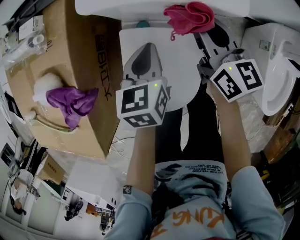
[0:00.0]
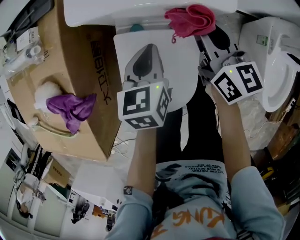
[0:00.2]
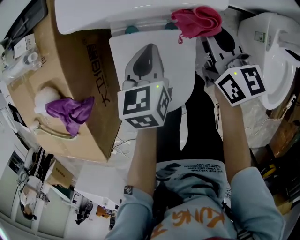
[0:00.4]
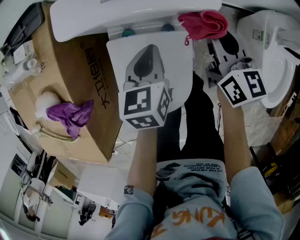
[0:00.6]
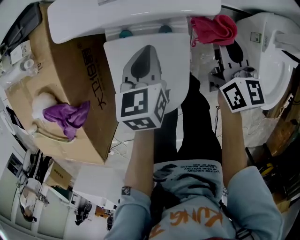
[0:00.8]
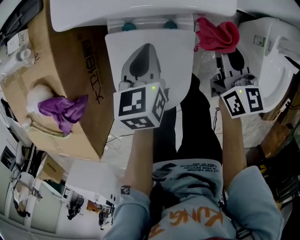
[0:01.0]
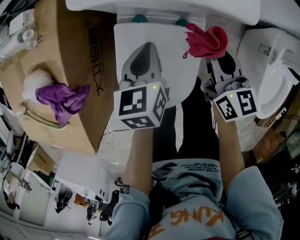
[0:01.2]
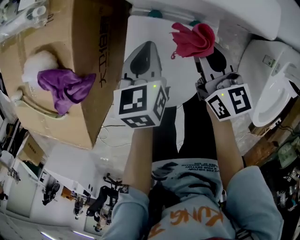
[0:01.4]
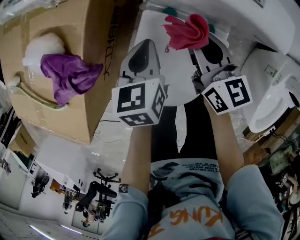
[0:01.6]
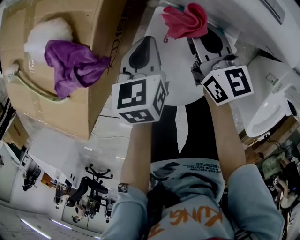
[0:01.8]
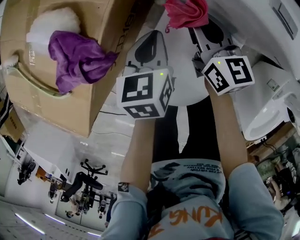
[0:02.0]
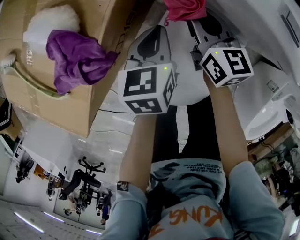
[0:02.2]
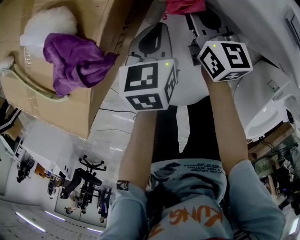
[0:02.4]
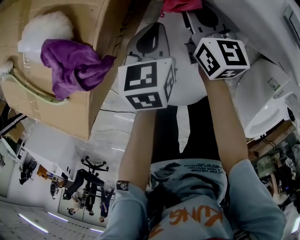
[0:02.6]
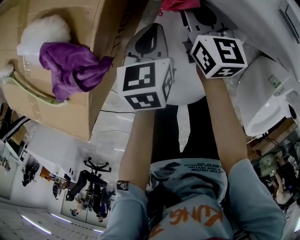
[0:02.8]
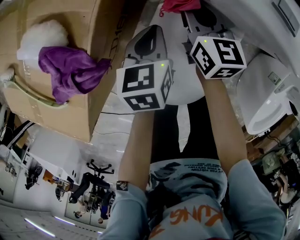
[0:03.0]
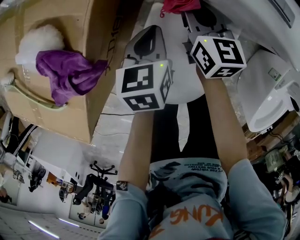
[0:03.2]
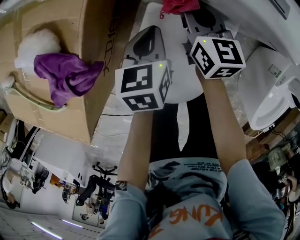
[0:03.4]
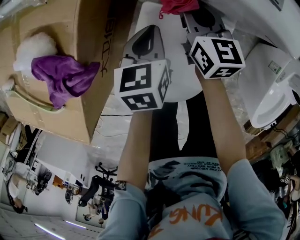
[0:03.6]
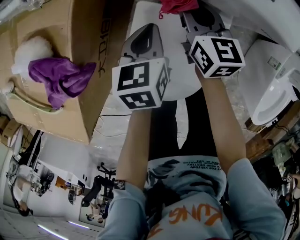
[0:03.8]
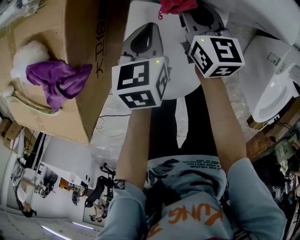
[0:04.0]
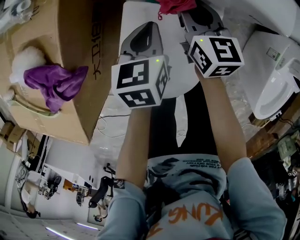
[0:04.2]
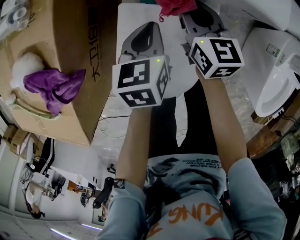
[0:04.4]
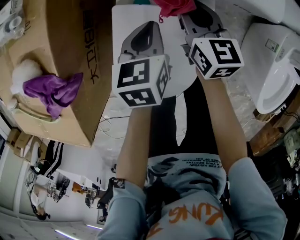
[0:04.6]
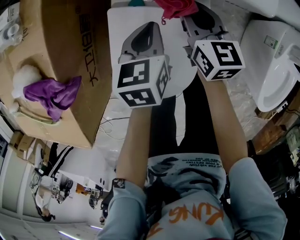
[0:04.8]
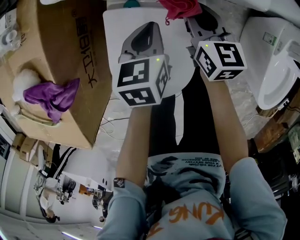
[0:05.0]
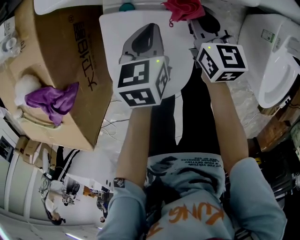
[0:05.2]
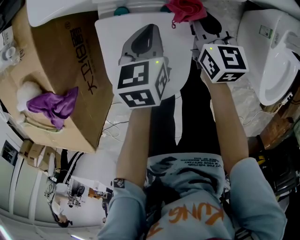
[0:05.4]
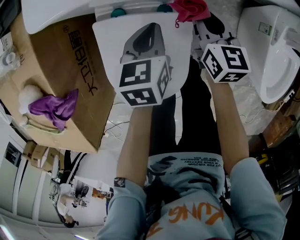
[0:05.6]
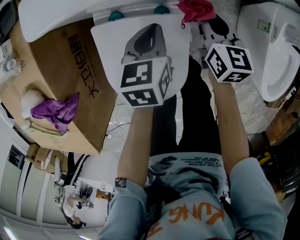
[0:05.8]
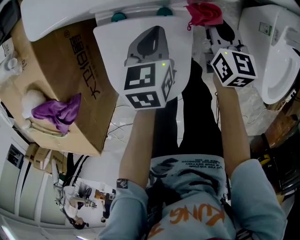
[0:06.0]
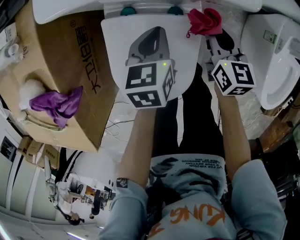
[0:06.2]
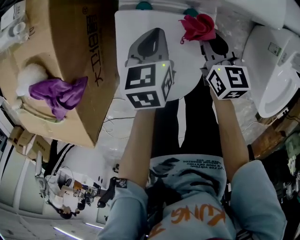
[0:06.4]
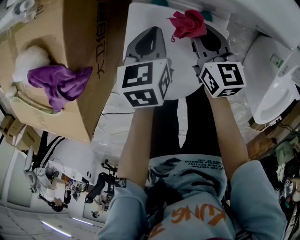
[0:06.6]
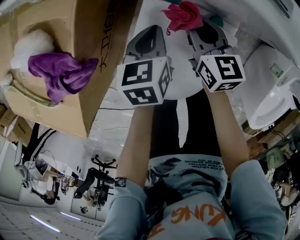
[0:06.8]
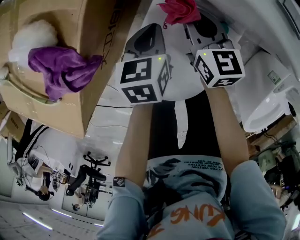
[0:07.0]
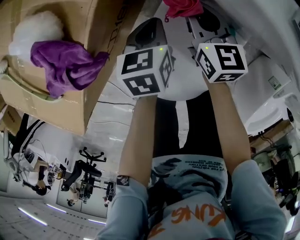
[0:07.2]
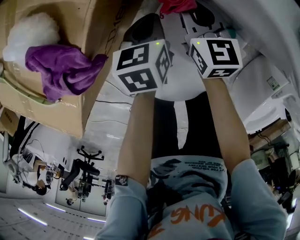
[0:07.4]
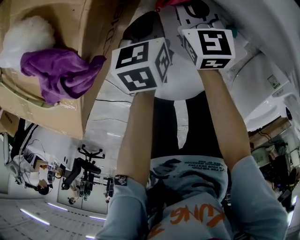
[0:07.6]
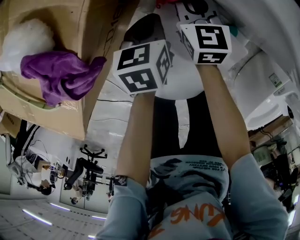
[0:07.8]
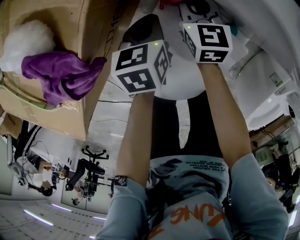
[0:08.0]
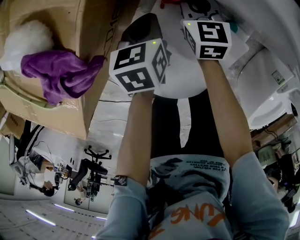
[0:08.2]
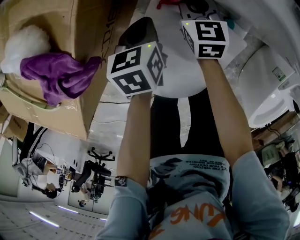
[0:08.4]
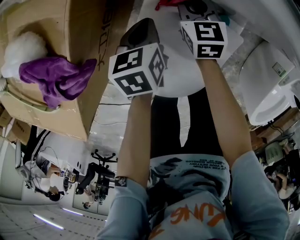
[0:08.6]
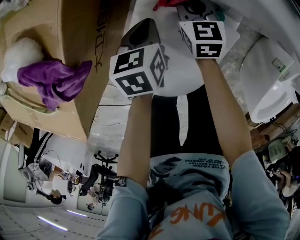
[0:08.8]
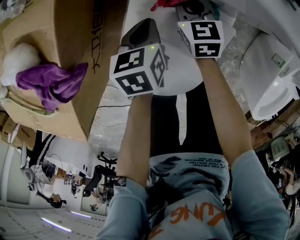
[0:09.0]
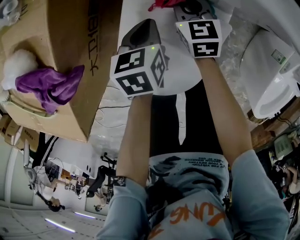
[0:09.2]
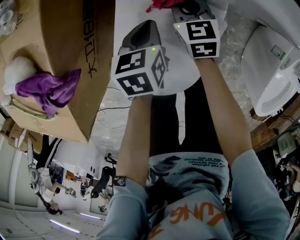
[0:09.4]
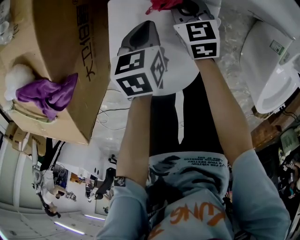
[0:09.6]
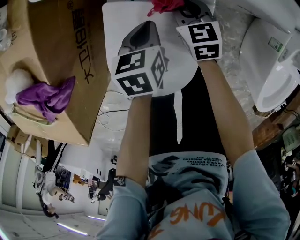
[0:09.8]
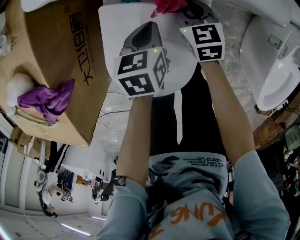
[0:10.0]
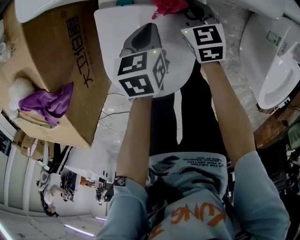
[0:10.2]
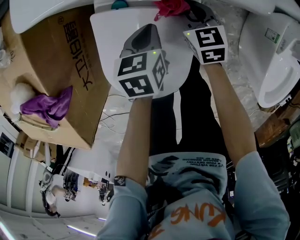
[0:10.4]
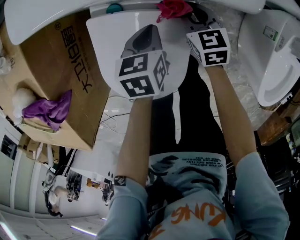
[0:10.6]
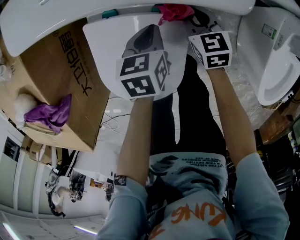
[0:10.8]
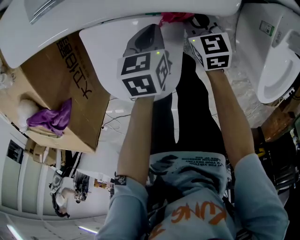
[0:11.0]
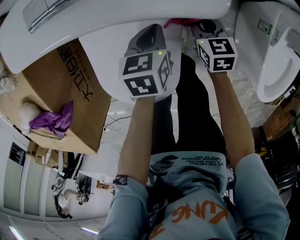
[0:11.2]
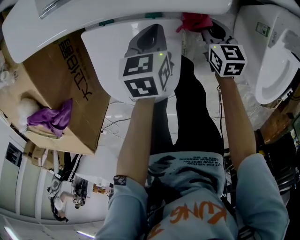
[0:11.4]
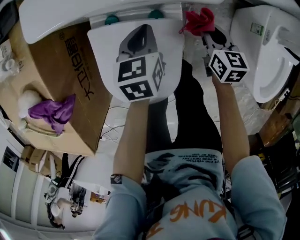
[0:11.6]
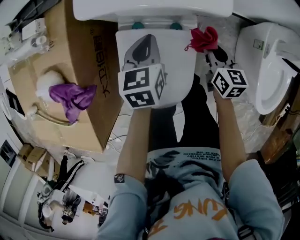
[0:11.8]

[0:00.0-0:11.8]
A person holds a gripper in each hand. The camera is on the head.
0.0 to 1.4 s: The right gripper moves backward, some 5 cm, and reaches about 15 cm to the right, then returns. The left gripper ends up about 5 cm from where it was.
1.4 to 3.0 s: The left gripper travels to the left by about 10 cm. Meanwhile the right gripper shifts some 20 cm forward, to the left and downward.
3.0 to 4.4 s: Both grippers move to the right, some 10 cm.
4.4 to 6.0 s: The right gripper shifts approximately 20 cm to the right. Meanwhile the left gripper shifts roughly 10 cm to the right.
6.0 to 7.4 s: The left gripper ends up about 25 cm from where it was, and changes its angle by about 30 degrees; the right gripper ends up roughly 35 cm from where it was, and turns by roughly 40 degrees.
7.4 to 8.8 s: The left gripper goes some 5 cm to the right. Meanwhile the right gripper is displaced to the right and downward by approximately 10 cm.
8.8 to 10.4 s: The two grippers go about 15 cm to the right.
10.4 to 11.8 s: The right gripper is displaced upward, to the right and backward by about 15 cm, and turns by approximately 30 degrees; the left gripper is displaced upward by about 15 cm.

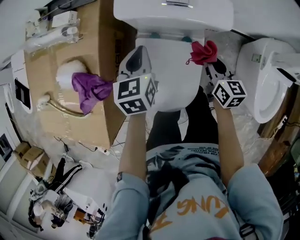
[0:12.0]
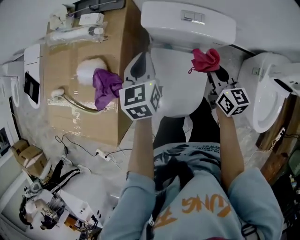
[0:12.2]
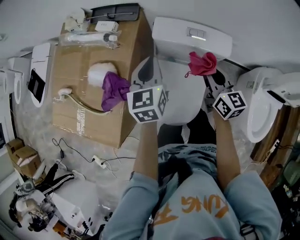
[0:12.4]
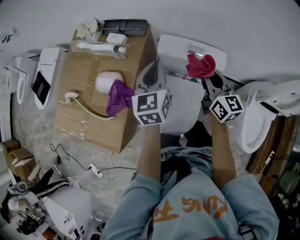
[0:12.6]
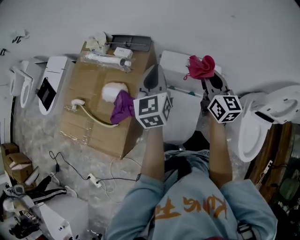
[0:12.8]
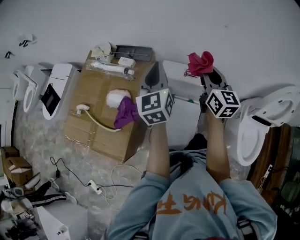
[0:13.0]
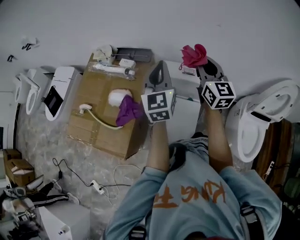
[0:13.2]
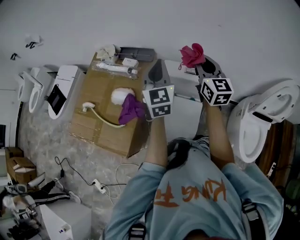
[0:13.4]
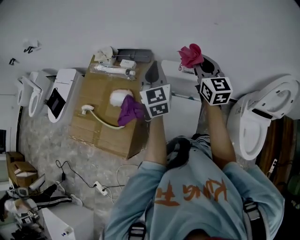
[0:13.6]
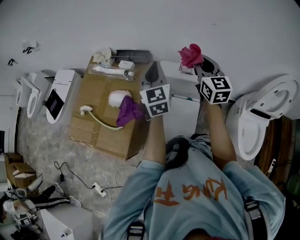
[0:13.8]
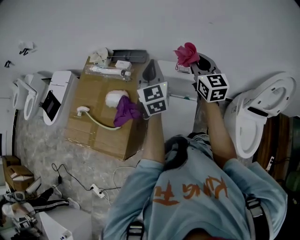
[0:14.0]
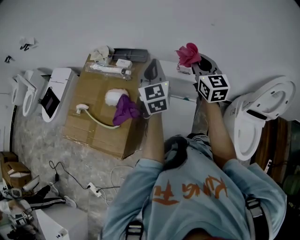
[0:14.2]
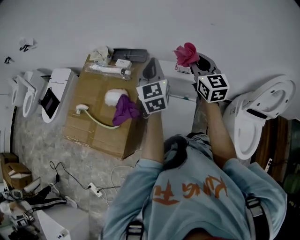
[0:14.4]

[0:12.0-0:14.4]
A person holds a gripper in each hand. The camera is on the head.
12.0 to 13.2 s: Both grippers move upward, roughly 40 cm. The right gripper tilts its fingers roughly 30 degrees upward, while the left gripper tips its fingers upward by about 40 degrees.
13.2 to 14.4 s: There are only small adjustments of the grippers.

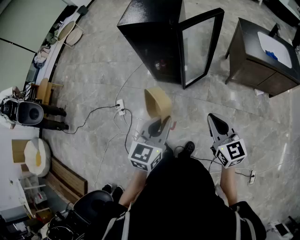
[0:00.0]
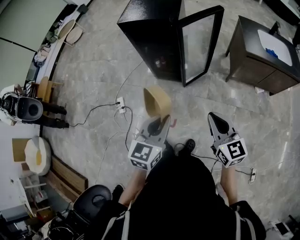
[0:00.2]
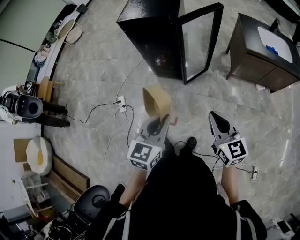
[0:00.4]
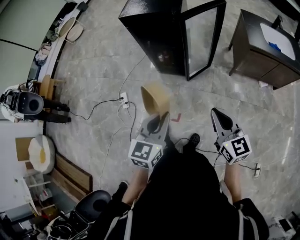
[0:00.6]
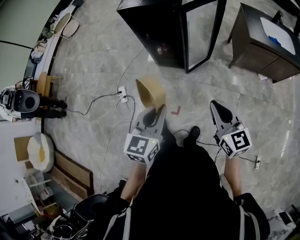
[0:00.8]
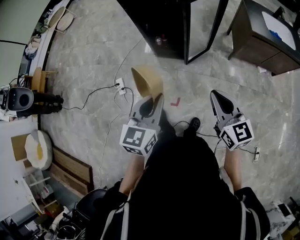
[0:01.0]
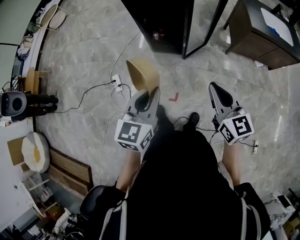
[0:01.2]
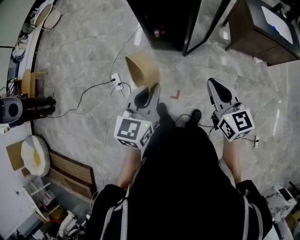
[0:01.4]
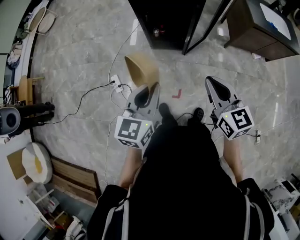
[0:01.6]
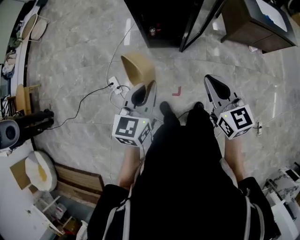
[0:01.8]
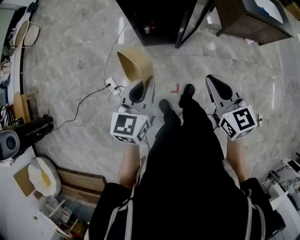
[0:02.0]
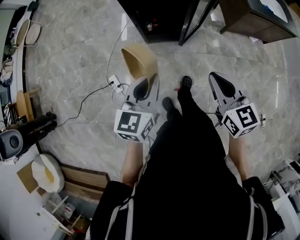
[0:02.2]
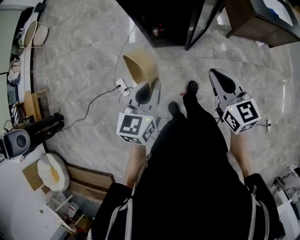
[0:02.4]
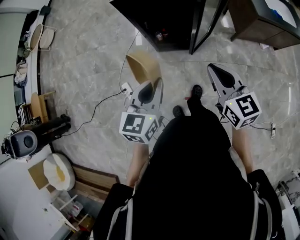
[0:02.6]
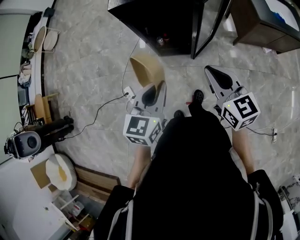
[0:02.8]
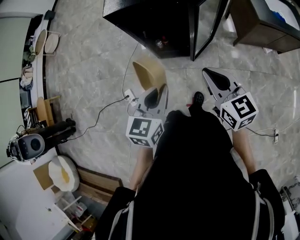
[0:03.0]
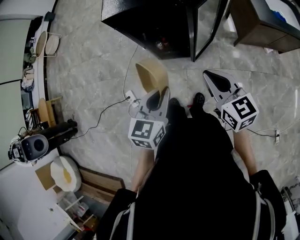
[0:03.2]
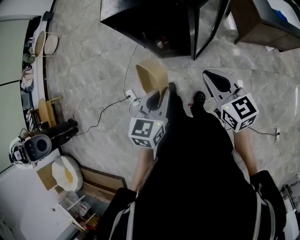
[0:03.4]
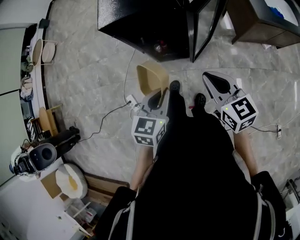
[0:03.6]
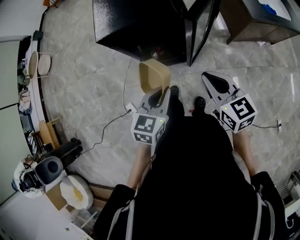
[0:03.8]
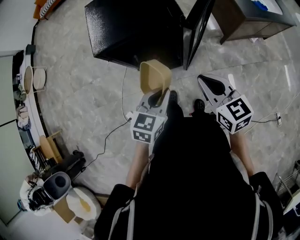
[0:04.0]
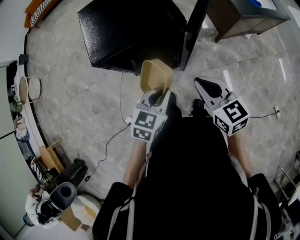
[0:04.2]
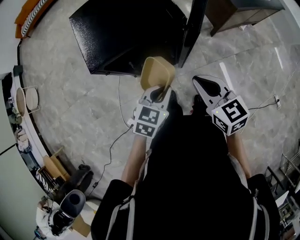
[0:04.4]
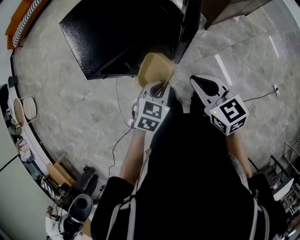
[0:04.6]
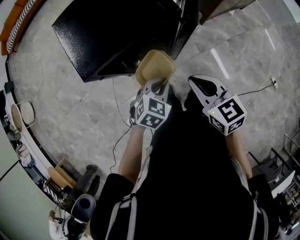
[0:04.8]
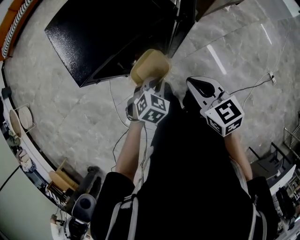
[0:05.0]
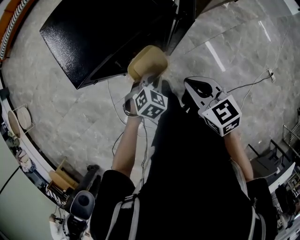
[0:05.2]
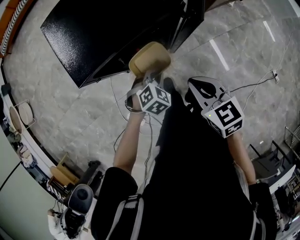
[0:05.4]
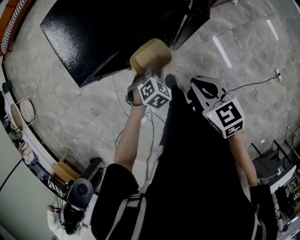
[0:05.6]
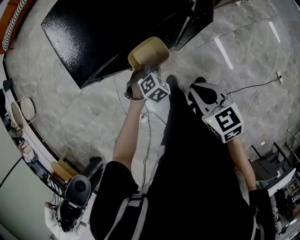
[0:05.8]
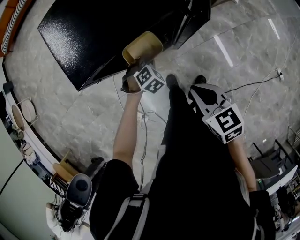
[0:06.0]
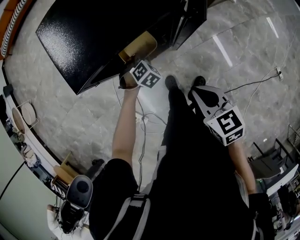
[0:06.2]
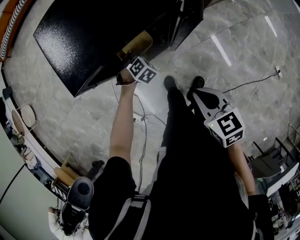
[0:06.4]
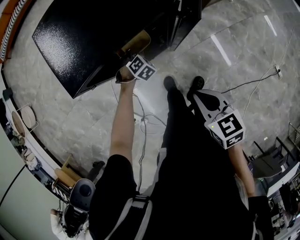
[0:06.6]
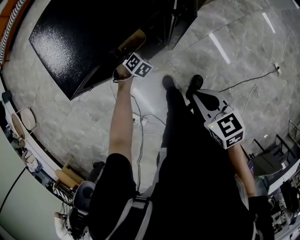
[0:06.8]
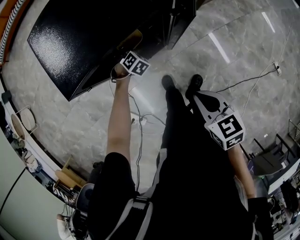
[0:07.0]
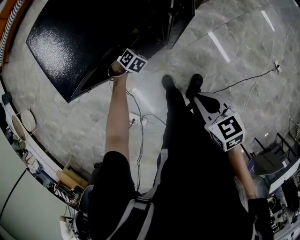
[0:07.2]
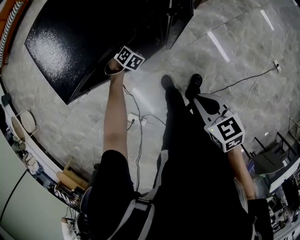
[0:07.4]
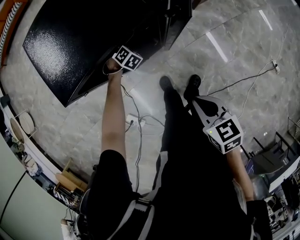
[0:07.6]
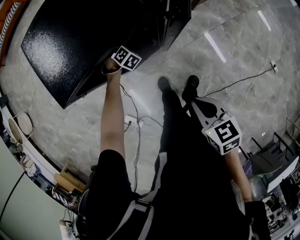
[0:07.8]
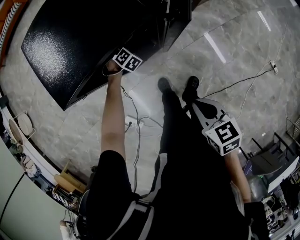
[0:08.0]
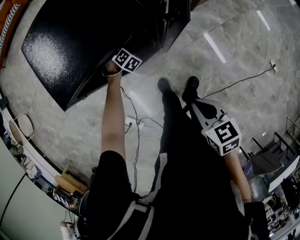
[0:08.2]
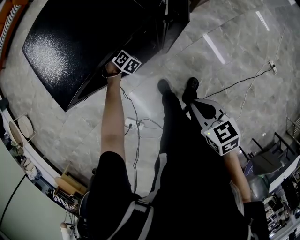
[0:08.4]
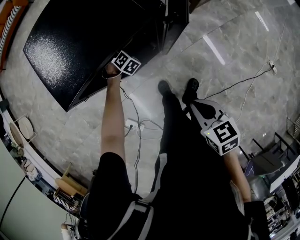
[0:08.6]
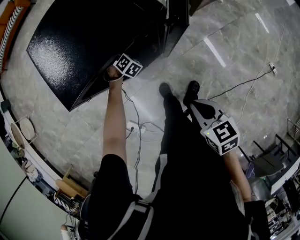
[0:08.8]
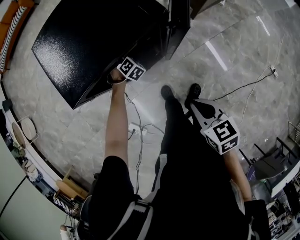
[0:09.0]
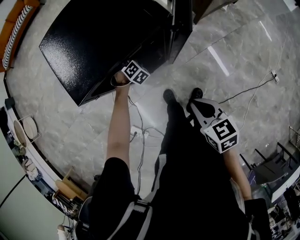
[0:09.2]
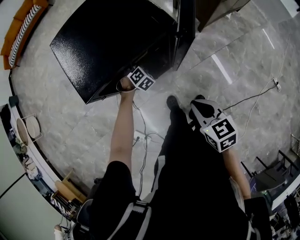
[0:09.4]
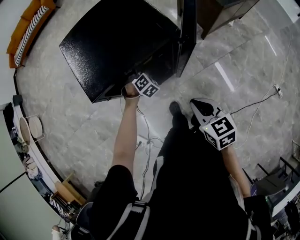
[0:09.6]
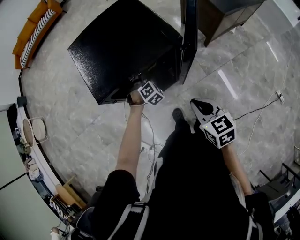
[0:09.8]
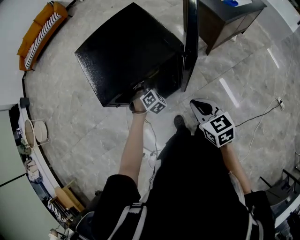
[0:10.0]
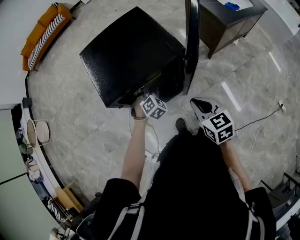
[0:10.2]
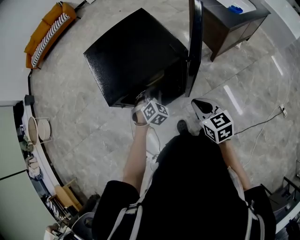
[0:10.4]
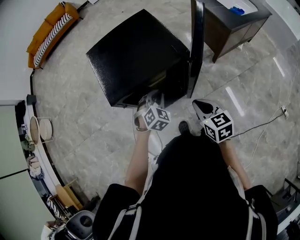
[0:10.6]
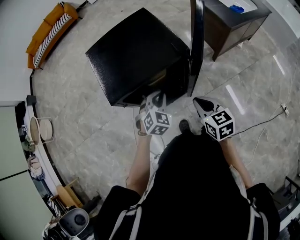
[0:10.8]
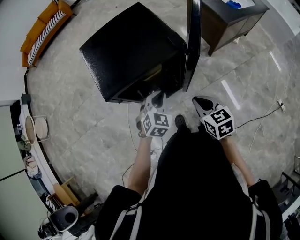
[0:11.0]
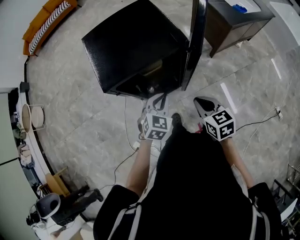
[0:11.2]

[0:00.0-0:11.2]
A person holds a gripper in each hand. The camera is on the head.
0.0 to 1.6 s: The grippers both shift to the left by about 25 cm.
1.6 to 3.2 s: The left gripper shifts some 20 cm forward and to the right; the right gripper shifts some 20 cm forward.
3.2 to 4.8 s: The right gripper shifts by roughly 15 cm, and changes its angle by some 30 degrees; the left gripper ends up about 25 cm from where it was, and changes its angle by approximately 50 degrees.
4.8 to 6.4 s: The right gripper travels downward by roughly 10 cm; the left gripper moves downward and forward, roughly 25 cm, and rotates roughly 30 degrees.
6.4 to 8.0 s: The left gripper shifts some 10 cm forward and downward, while the right gripper changes place by roughly 5 cm.
8.0 to 9.6 s: The left gripper moves upward, about 10 cm, while the right gripper shifts about 10 cm forward and upward.
9.6 to 11.2 s: The left gripper travels upward and backward by some 25 cm, and rotates some 40 degrees.
